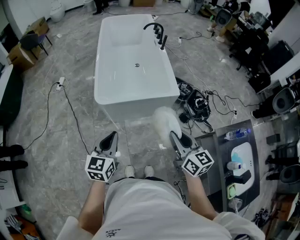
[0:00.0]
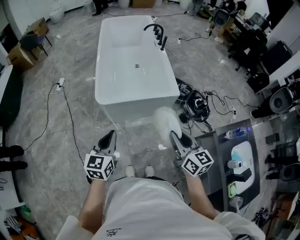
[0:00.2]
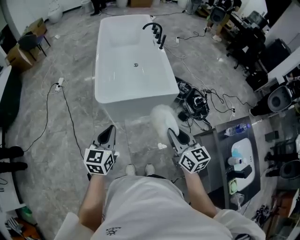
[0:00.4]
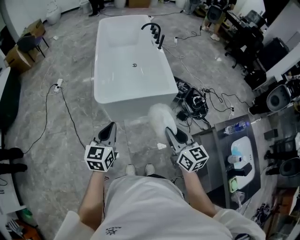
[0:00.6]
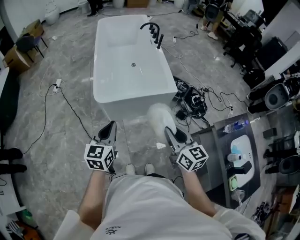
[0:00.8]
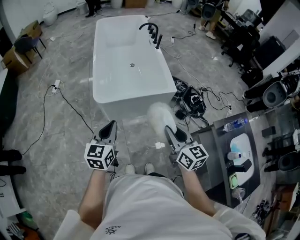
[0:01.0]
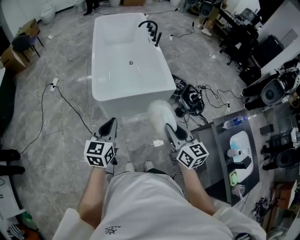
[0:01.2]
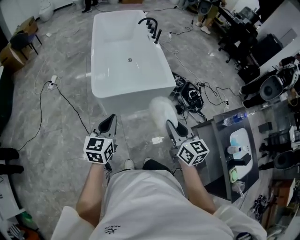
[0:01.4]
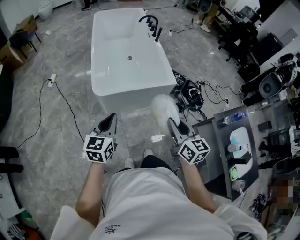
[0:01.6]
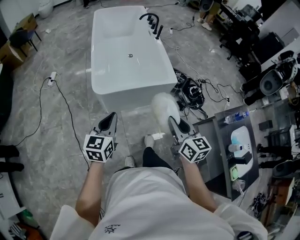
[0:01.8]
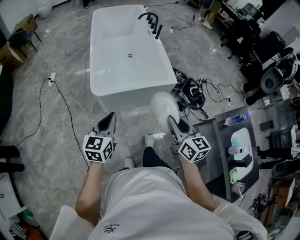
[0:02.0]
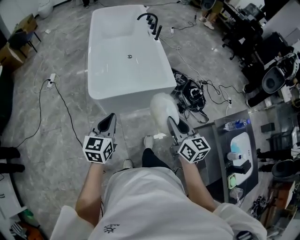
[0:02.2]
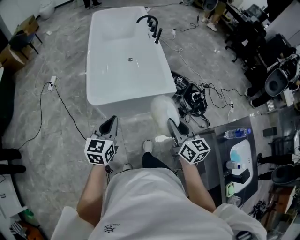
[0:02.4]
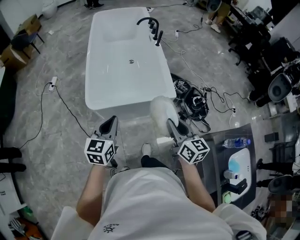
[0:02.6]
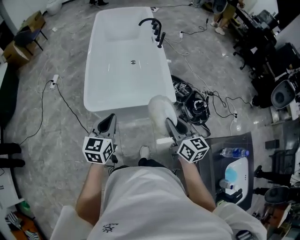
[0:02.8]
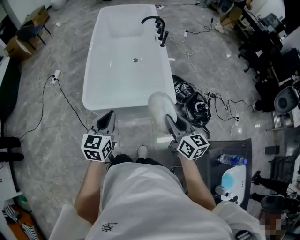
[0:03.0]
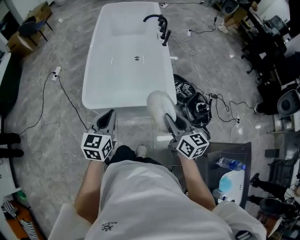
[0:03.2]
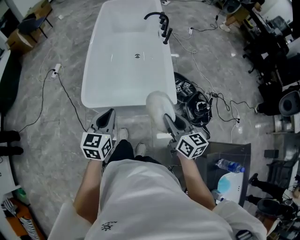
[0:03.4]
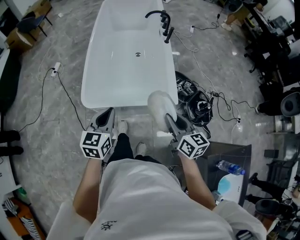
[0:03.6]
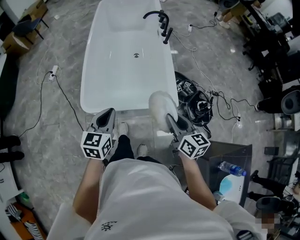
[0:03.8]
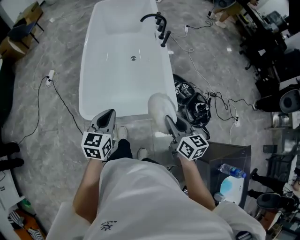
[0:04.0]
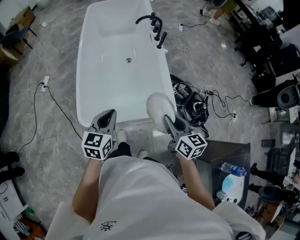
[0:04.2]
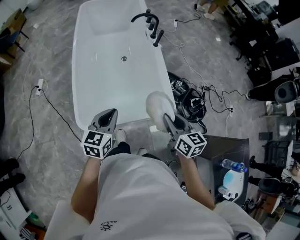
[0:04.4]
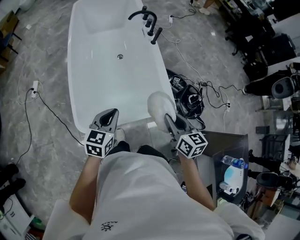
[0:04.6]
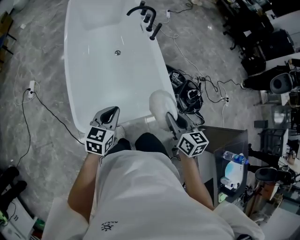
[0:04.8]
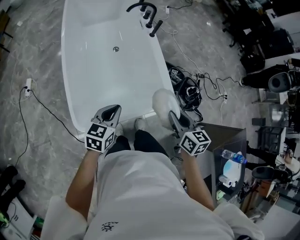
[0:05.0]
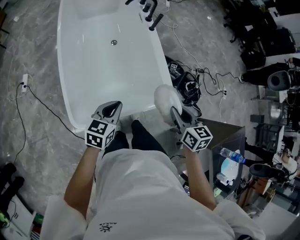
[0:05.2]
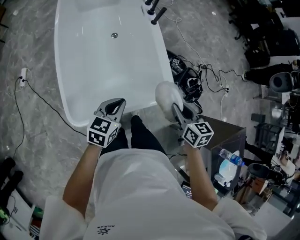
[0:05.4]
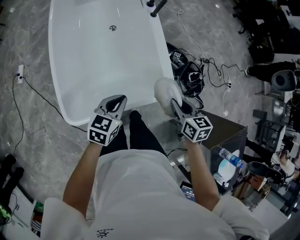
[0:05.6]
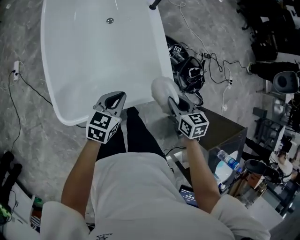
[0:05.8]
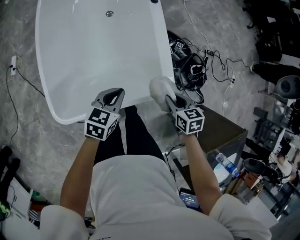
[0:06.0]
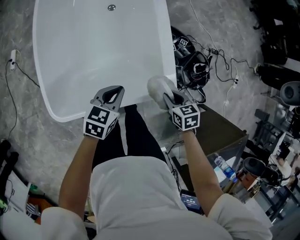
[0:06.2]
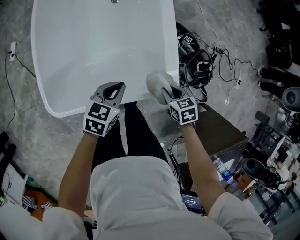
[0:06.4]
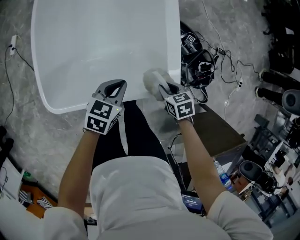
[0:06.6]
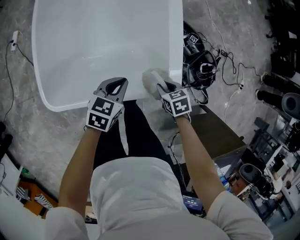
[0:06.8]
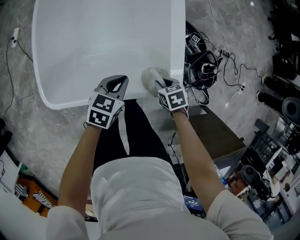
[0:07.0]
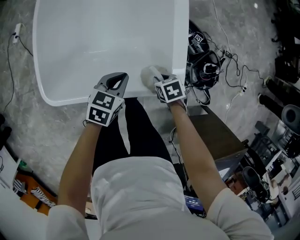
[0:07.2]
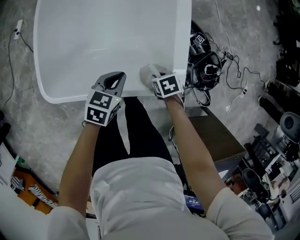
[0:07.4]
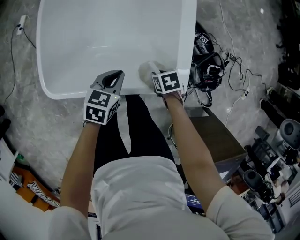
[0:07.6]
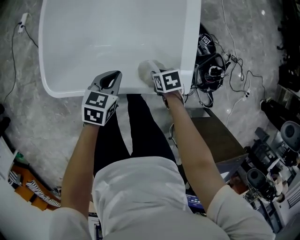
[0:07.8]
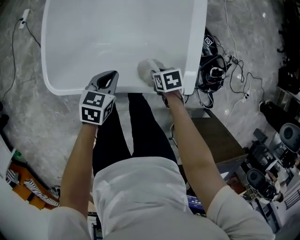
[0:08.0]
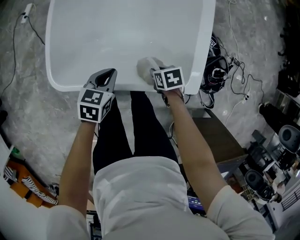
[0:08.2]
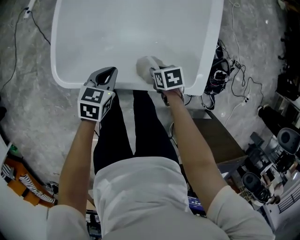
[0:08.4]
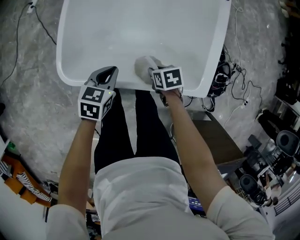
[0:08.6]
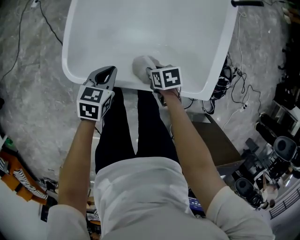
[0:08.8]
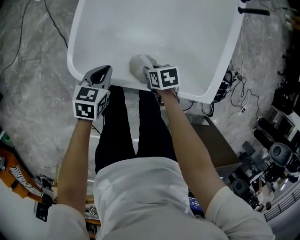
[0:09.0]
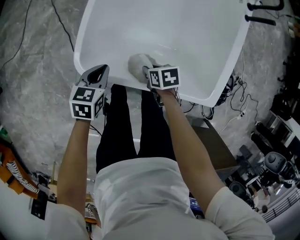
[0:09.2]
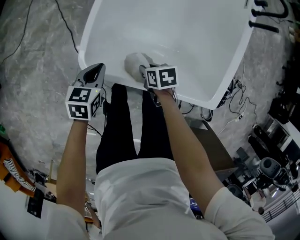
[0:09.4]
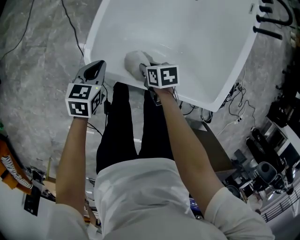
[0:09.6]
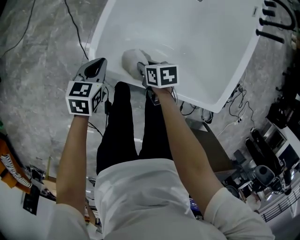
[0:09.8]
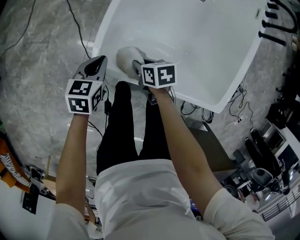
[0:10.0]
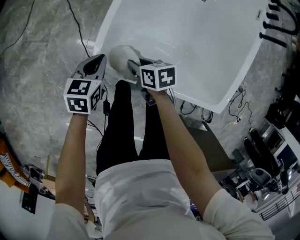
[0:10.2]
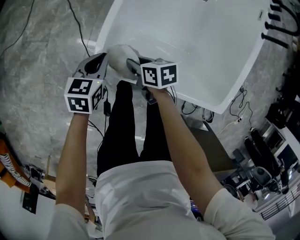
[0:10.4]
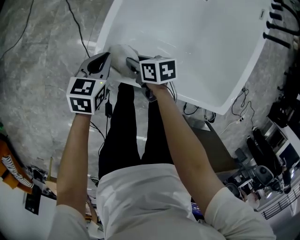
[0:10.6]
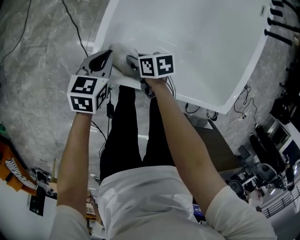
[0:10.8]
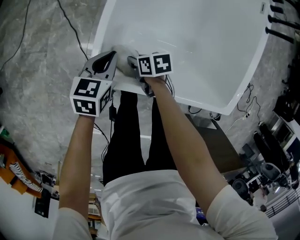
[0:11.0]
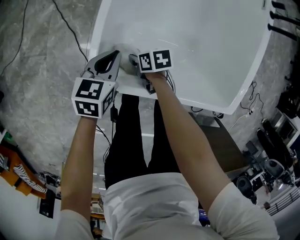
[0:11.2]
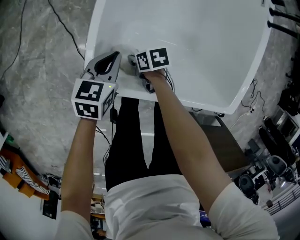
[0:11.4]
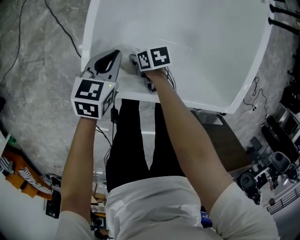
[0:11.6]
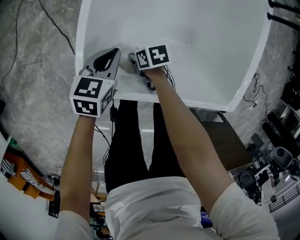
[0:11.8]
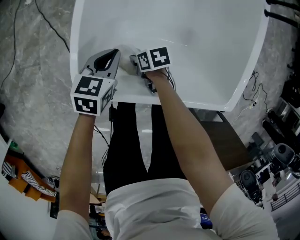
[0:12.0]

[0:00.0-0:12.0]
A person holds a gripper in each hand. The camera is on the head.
0:00.0 to 0:01.6: Both grippers move to the left, roughly 5 cm.
0:01.6 to 0:03.0: The grippers both shift forward and to the right by roughly 25 cm.
0:03.0 to 0:04.4: The two grippers go about 15 cm forward.
0:04.4 to 0:06.0: The left gripper goes approximately 25 cm downward, forward and to the right, and rotates roughly 20 degrees; the right gripper heads downward, covering about 20 cm, and angles its fingers downward, by roughly 30 degrees.
0:06.0 to 0:07.6: The right gripper is displaced downward by roughly 20 cm, and turns by roughly 30 degrees. Meanwhile the left gripper goes some 10 cm downward.
0:07.6 to 0:09.0: The right gripper changes place by about 25 cm. The left gripper shifts by about 25 cm.
0:09.0 to 0:10.4: Both grippers move to the left and forward, roughly 20 cm.
0:10.4 to 0:12.0: The left gripper ends up about 15 cm from where it was. Meanwhile the right gripper moves downward, roughly 15 cm.

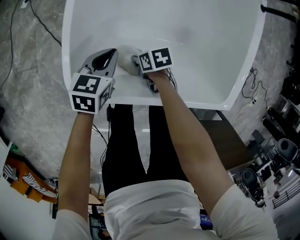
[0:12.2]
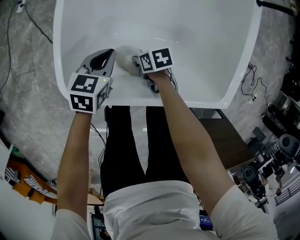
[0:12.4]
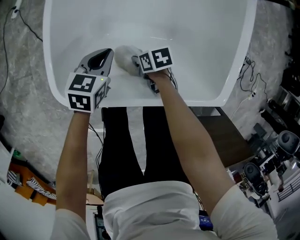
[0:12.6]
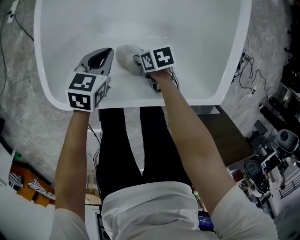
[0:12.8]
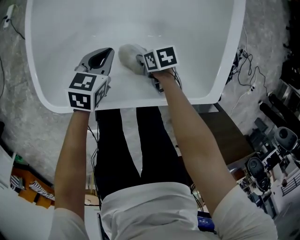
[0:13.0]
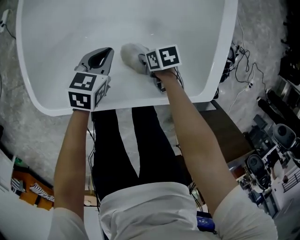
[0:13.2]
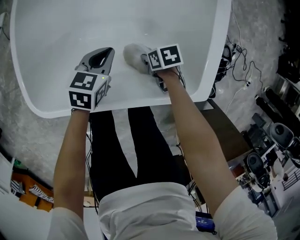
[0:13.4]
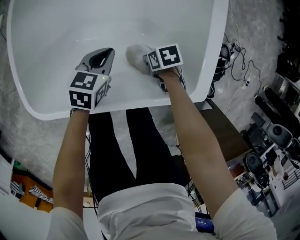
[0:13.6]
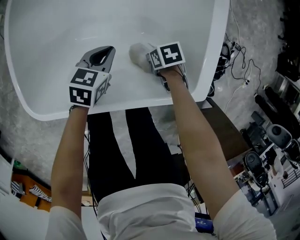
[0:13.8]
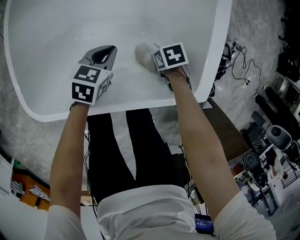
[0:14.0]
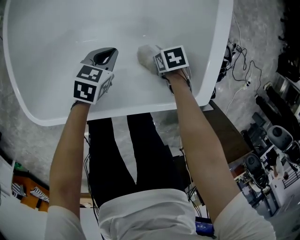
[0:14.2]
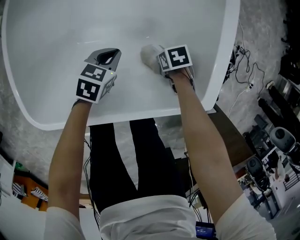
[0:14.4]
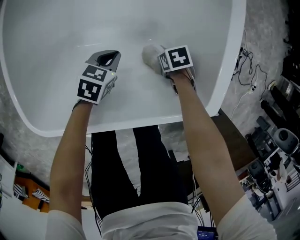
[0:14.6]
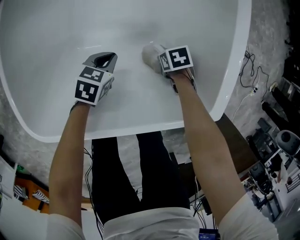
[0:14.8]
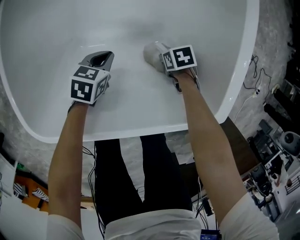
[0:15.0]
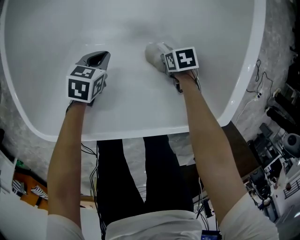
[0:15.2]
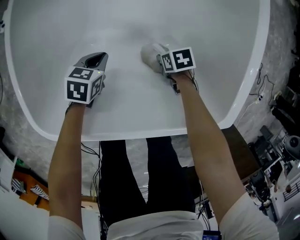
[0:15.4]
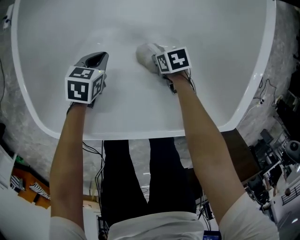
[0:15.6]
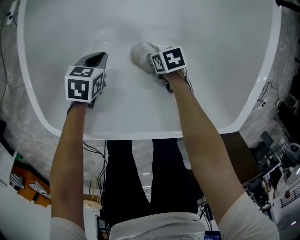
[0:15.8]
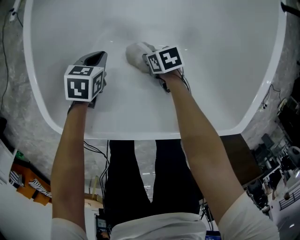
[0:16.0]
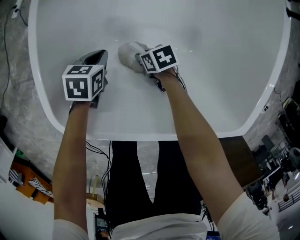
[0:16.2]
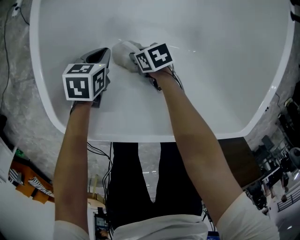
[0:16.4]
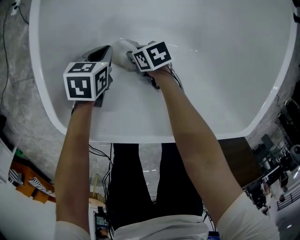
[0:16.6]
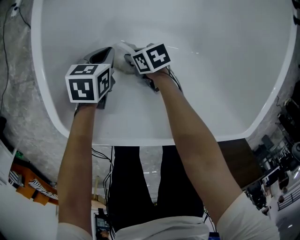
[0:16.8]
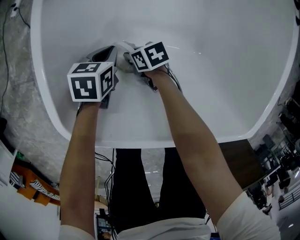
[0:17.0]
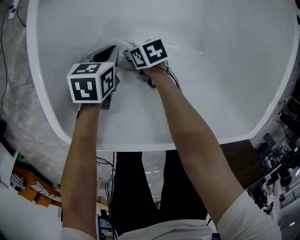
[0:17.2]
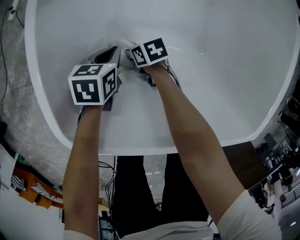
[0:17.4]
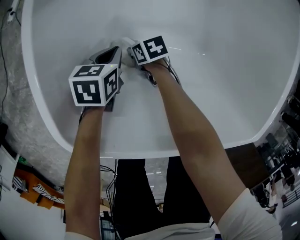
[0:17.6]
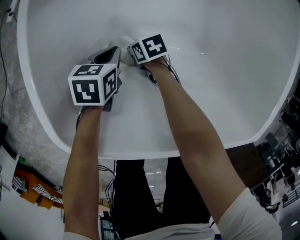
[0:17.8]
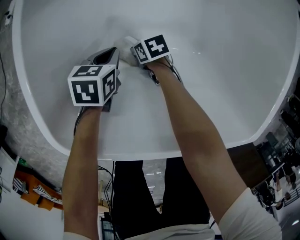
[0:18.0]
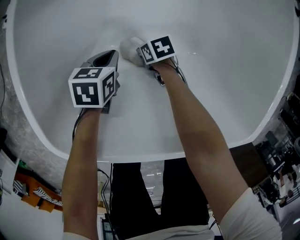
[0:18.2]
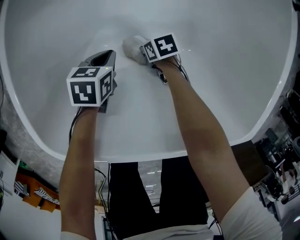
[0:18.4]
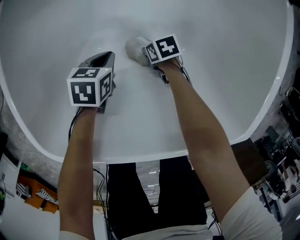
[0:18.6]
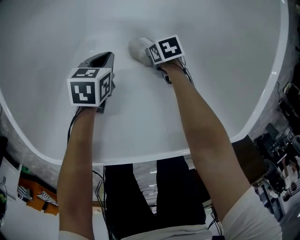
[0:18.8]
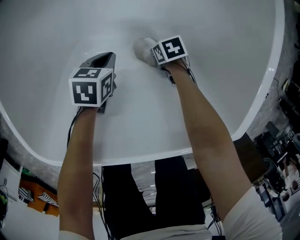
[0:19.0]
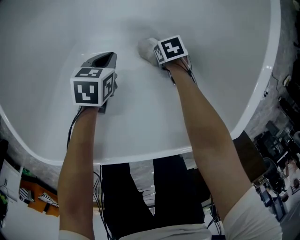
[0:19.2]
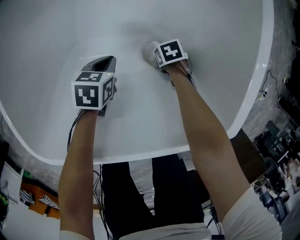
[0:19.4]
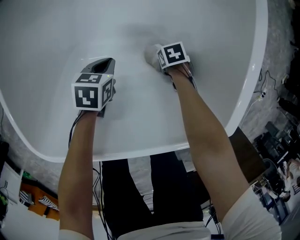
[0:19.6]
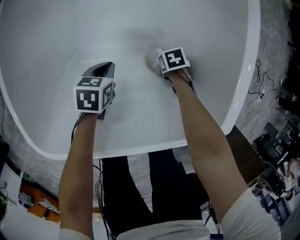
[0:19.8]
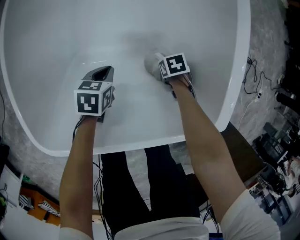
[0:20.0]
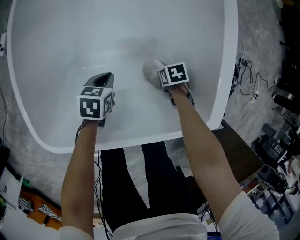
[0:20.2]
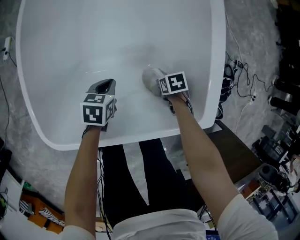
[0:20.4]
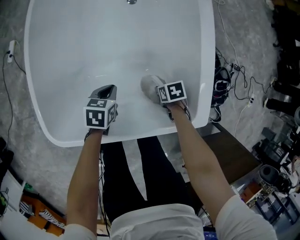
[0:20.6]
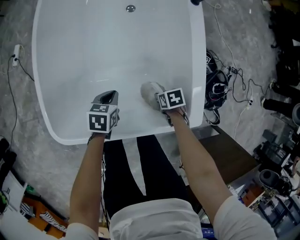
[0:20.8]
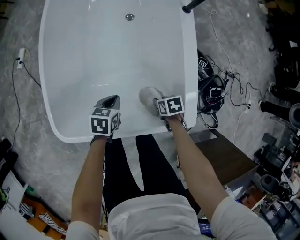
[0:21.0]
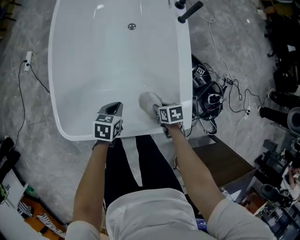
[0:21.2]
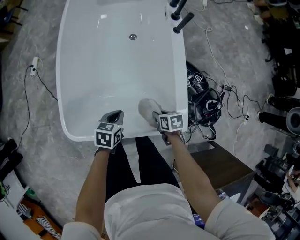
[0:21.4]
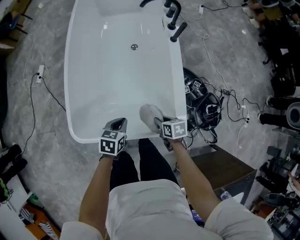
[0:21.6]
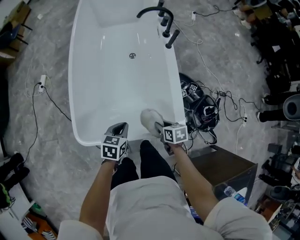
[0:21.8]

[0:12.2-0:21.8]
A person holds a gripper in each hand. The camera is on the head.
0:12.2 to 0:13.8: The right gripper ends up some 30 cm from where it was, while the left gripper shifts by about 20 cm.
0:13.8 to 0:15.4: The left gripper changes place by about 15 cm, while the right gripper goes roughly 10 cm downward.
0:15.4 to 0:17.0: The right gripper shifts by some 25 cm, and rotates some 20 degrees; the left gripper moves some 10 cm.
0:17.0 to 0:18.6: The left gripper moves roughly 5 cm. Meanwhile the right gripper shifts by roughly 15 cm.
0:18.6 to 0:20.2: Both grippers travel together upward, roughly 10 cm.
0:20.2 to 0:21.8: The grippers both shift upward by roughly 30 cm. The right gripper swivels some 30 degrees.

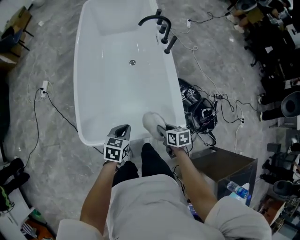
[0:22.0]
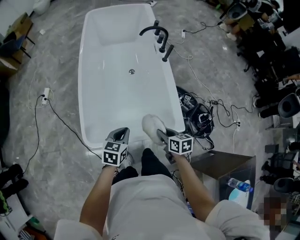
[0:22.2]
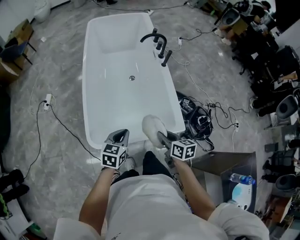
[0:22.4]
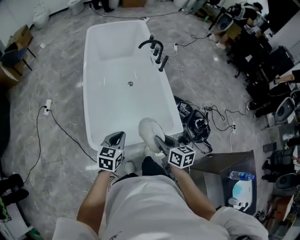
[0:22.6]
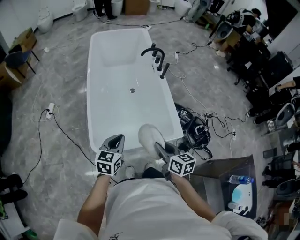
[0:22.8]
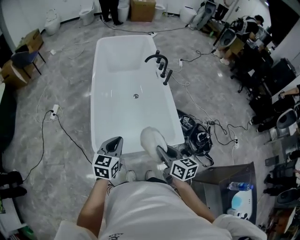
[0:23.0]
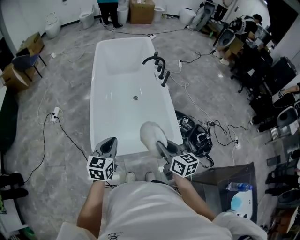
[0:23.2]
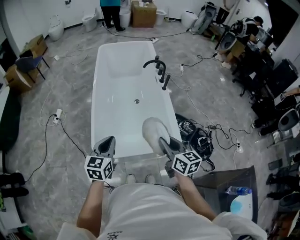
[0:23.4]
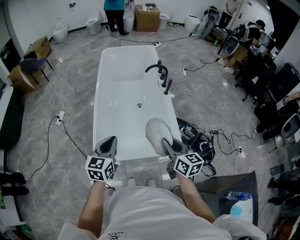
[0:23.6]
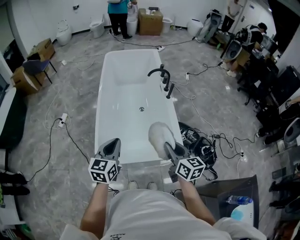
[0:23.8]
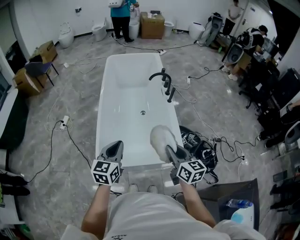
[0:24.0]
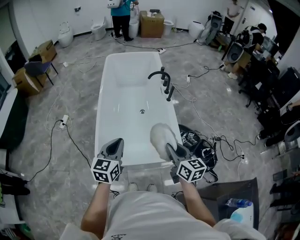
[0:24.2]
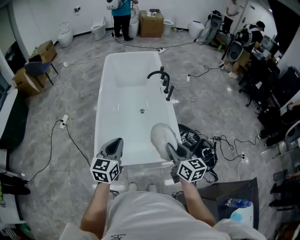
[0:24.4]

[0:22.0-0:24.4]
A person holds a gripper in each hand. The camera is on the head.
0:22.0 to 0:23.2: The right gripper heads upward, covering about 25 cm, and angles its fingers upward, by some 30 degrees; the left gripper shifts some 25 cm upward and to the left, and swivels roughly 30 degrees.
0:23.2 to 0:24.4: The left gripper is displaced upward by about 5 cm; the right gripper moves to the right, approximately 5 cm.
